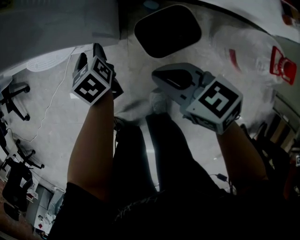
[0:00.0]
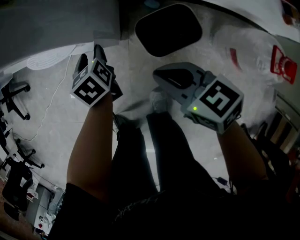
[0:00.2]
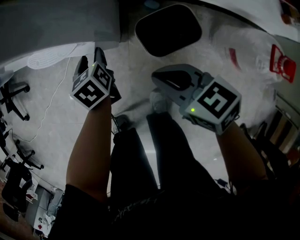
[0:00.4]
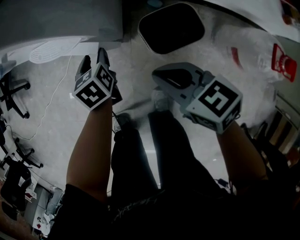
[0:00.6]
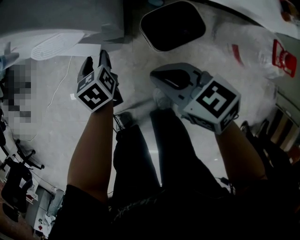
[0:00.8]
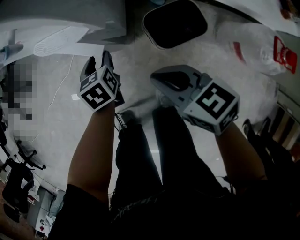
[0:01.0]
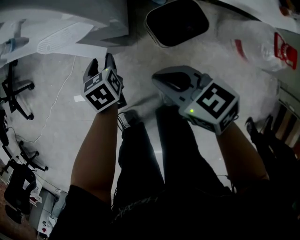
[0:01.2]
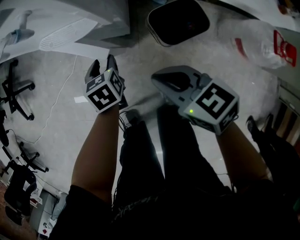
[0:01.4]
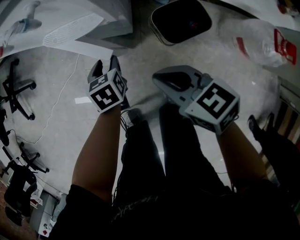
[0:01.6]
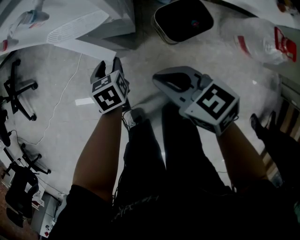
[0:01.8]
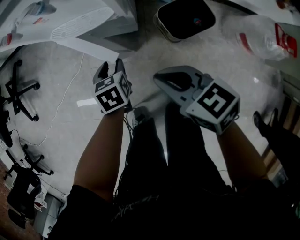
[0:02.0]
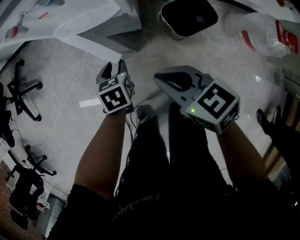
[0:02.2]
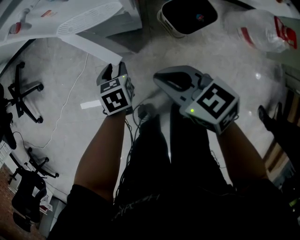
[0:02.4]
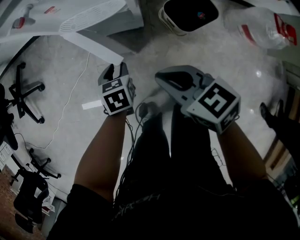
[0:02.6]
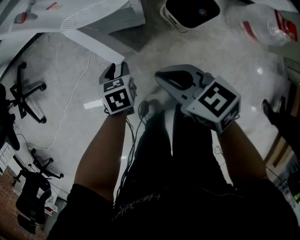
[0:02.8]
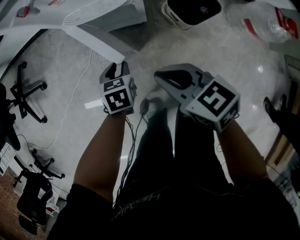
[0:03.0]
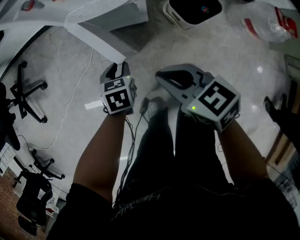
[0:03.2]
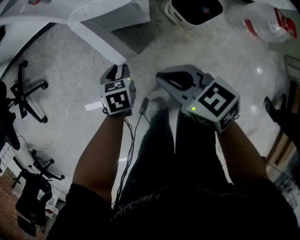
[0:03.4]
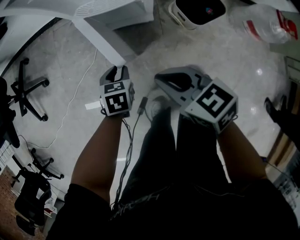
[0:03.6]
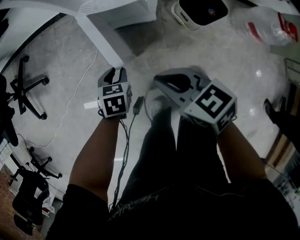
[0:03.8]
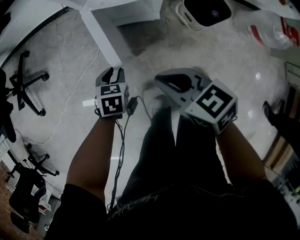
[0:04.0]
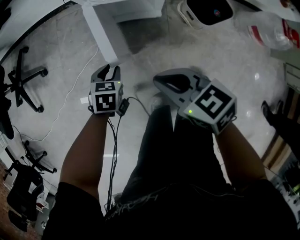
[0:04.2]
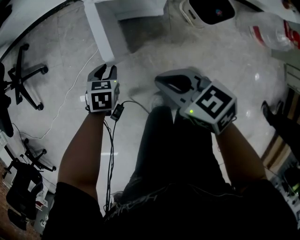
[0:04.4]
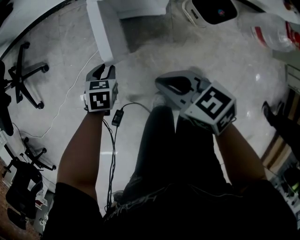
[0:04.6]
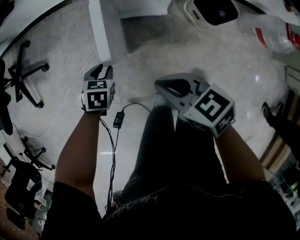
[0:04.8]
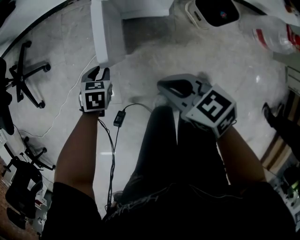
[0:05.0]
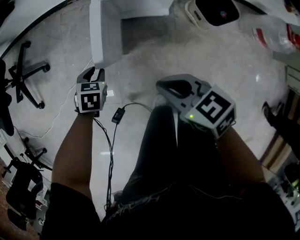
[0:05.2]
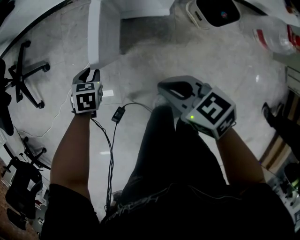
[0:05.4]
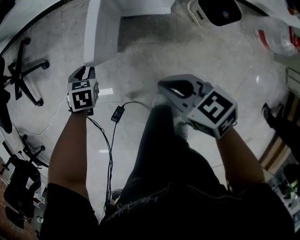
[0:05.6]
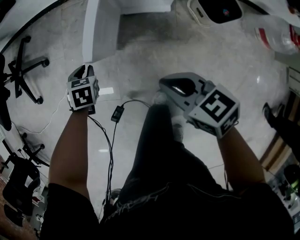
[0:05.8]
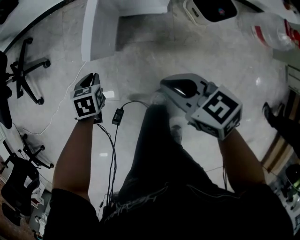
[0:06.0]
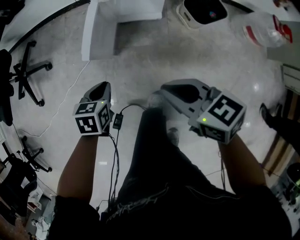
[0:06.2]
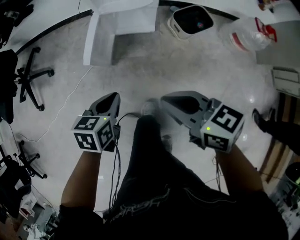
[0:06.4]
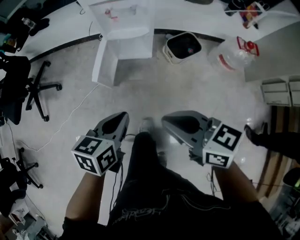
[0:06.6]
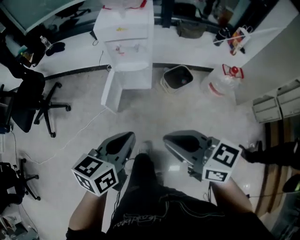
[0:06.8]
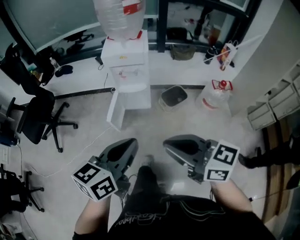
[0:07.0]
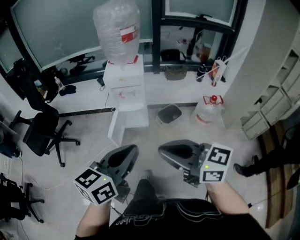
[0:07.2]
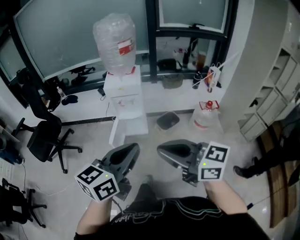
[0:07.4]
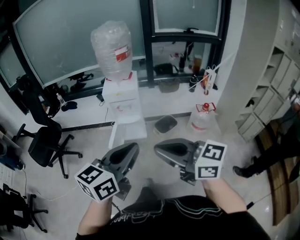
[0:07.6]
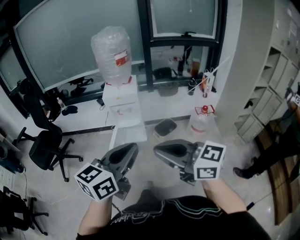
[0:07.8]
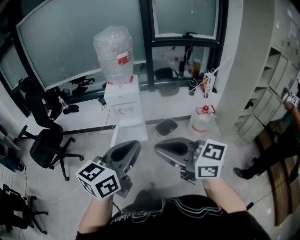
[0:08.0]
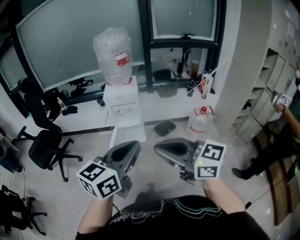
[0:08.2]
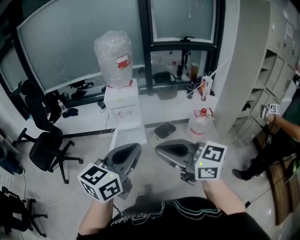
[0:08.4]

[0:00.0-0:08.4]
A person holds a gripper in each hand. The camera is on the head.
0:00.0 to 0:01.4: Both grippers move to the left, about 10 cm.
0:01.4 to 0:02.8: The two grippers go about 10 cm to the left.
0:02.8 to 0:04.2: Both grippers travel together to the left, roughly 10 cm.
0:04.2 to 0:05.6: The left gripper goes about 15 cm to the left and forward.
0:05.6 to 0:07.0: The two grippers go about 60 cm upward. The right gripper rotates approximately 30 degrees. Meanwhile the left gripper tilts its fingers approximately 50 degrees upward.
0:07.0 to 0:08.4: The grippers both shift upward and backward by about 20 cm. The left gripper swivels some 20 degrees.

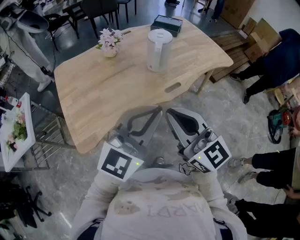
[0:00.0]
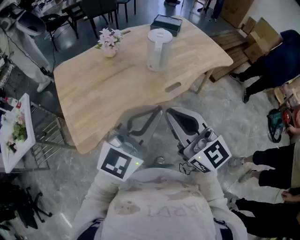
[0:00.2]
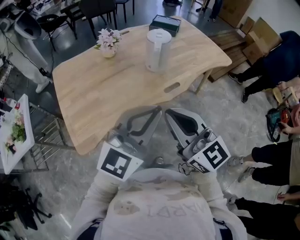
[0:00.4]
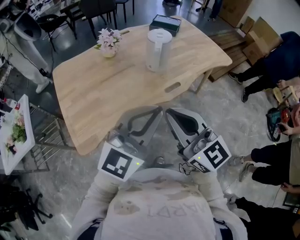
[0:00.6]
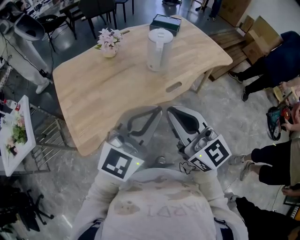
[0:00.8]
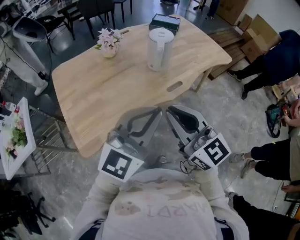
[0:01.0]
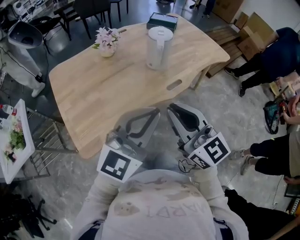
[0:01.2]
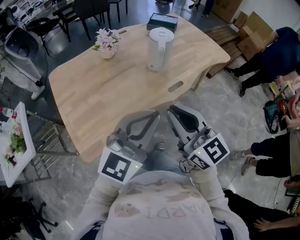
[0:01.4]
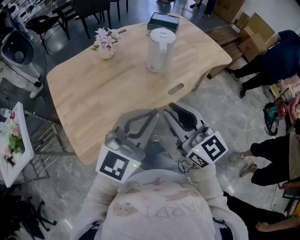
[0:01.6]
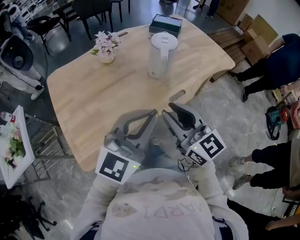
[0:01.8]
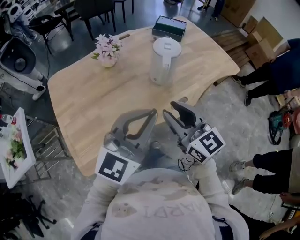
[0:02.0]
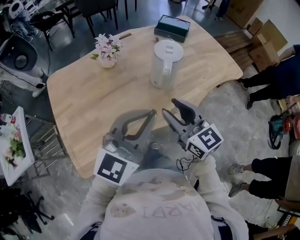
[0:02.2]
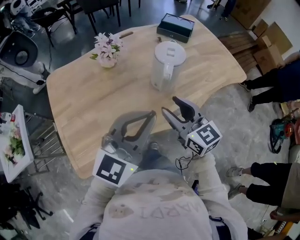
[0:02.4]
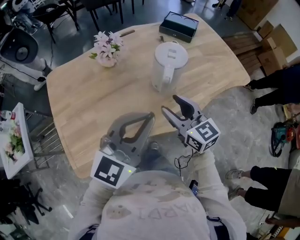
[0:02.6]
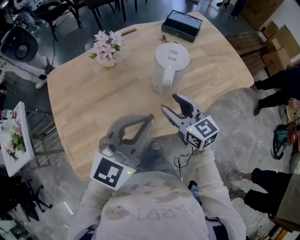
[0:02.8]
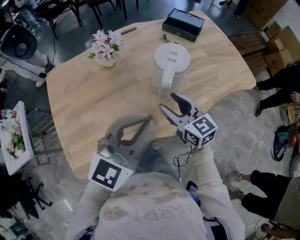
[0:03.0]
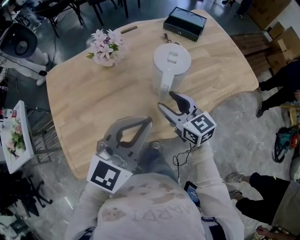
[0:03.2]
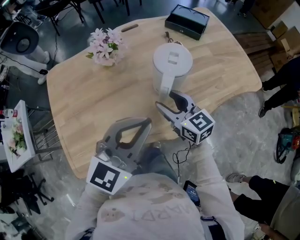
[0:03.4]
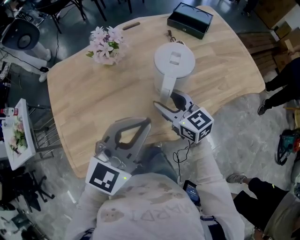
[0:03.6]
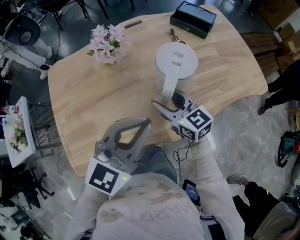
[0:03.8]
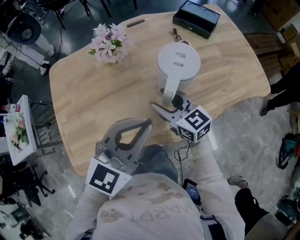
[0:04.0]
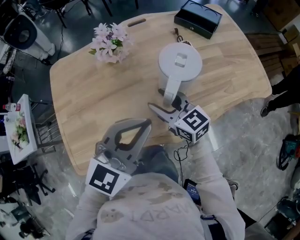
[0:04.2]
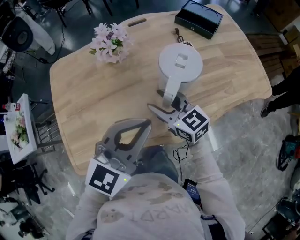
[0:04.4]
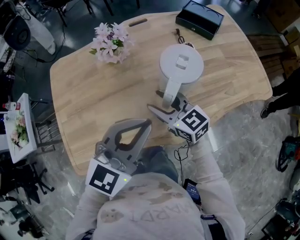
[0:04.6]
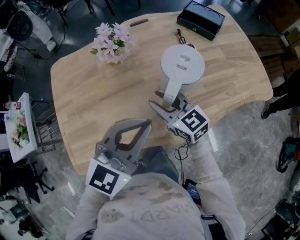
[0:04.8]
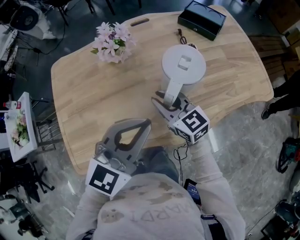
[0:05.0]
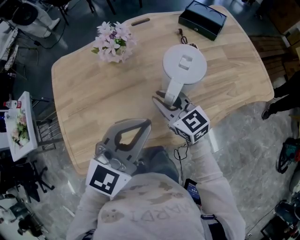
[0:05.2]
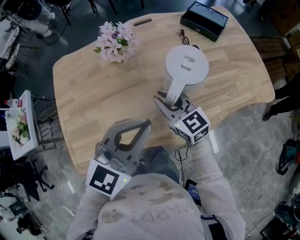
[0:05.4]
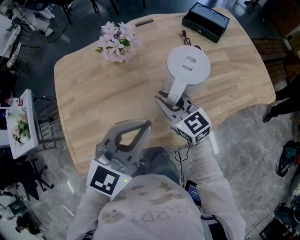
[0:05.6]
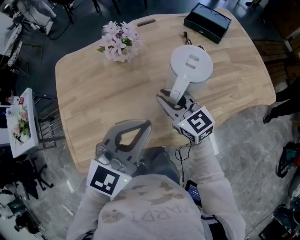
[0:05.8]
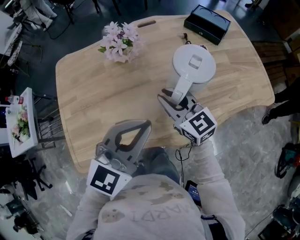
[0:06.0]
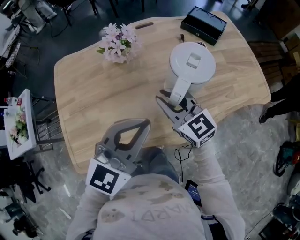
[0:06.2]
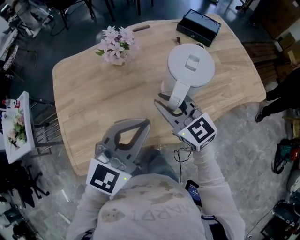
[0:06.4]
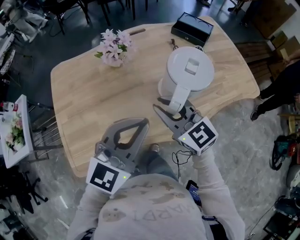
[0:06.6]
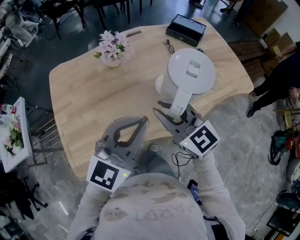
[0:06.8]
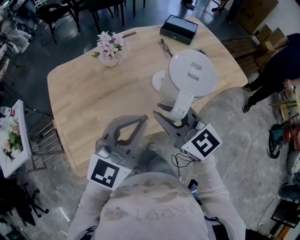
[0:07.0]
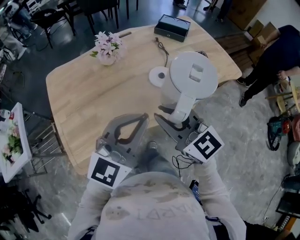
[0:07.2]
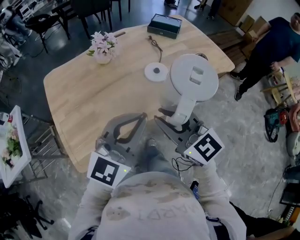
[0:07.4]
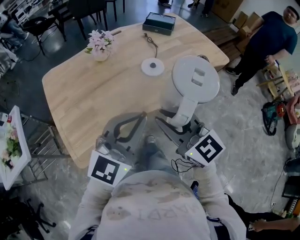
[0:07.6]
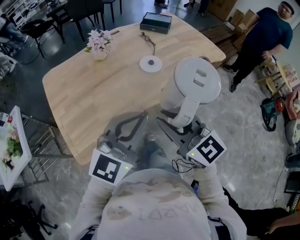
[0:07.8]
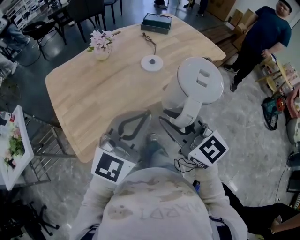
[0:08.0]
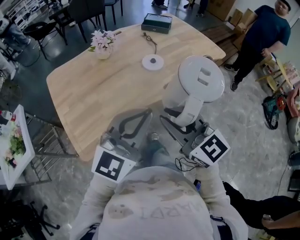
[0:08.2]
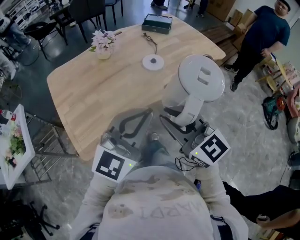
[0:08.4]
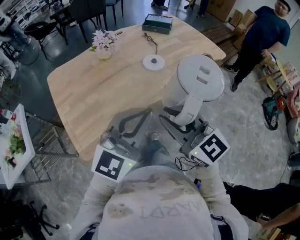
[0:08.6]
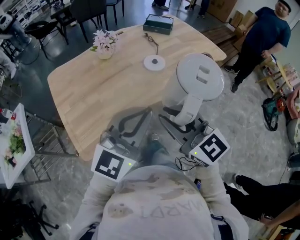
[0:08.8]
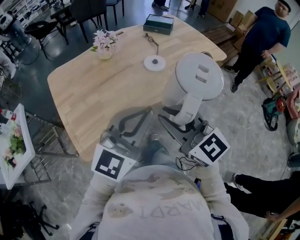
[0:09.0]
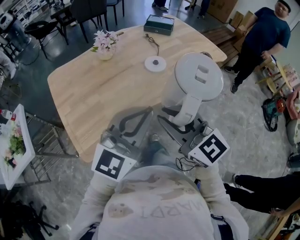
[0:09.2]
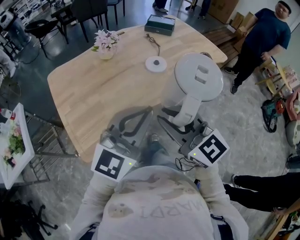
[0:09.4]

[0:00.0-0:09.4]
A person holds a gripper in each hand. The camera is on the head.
0:00.0 to 0:01.6: The right gripper travels forward by about 5 cm. The left gripper heads to the left, covering approximately 5 cm.
0:01.6 to 0:03.2: The right gripper heads forward and downward, covering some 35 cm, rotates some 20 degrees, and opens. The left gripper heads forward, covering approximately 20 cm.
0:03.2 to 0:04.8: The right gripper moves to the left, about 5 cm. Meanwhile the left gripper ends up about 5 cm from where it was.
0:04.8 to 0:06.2: The right gripper goes roughly 5 cm upward.
0:06.2 to 0:07.8: The two grippers go about 30 cm backward. The left gripper rotates some 20 degrees.
0:07.8 to 0:09.4: The grippers make only small movements.

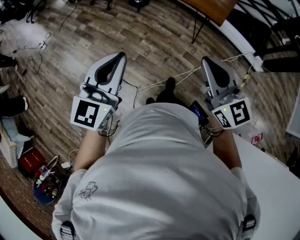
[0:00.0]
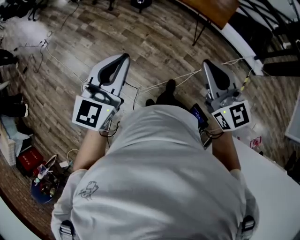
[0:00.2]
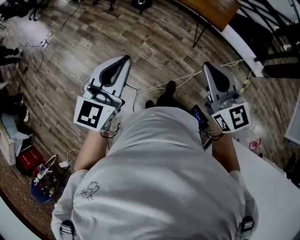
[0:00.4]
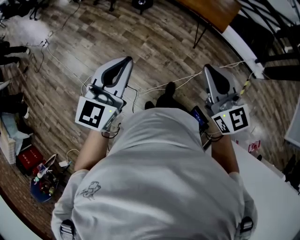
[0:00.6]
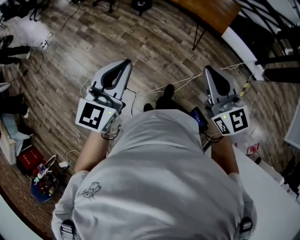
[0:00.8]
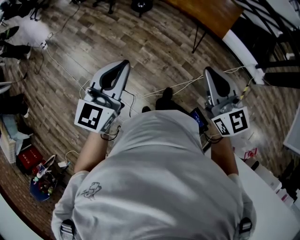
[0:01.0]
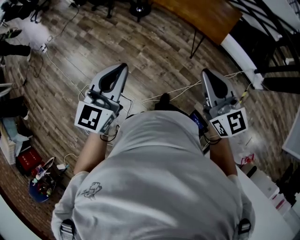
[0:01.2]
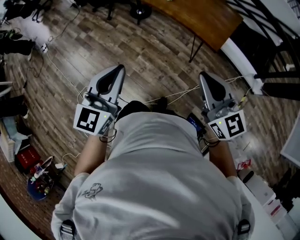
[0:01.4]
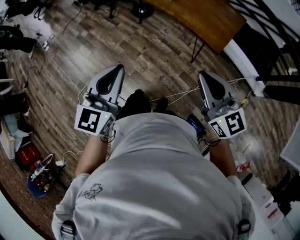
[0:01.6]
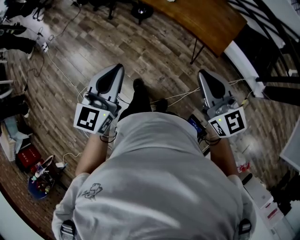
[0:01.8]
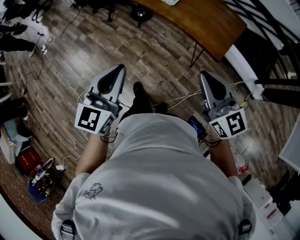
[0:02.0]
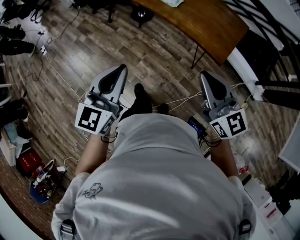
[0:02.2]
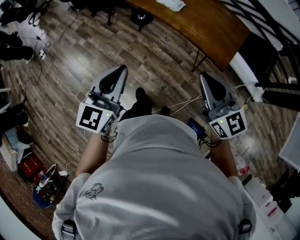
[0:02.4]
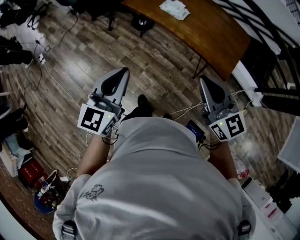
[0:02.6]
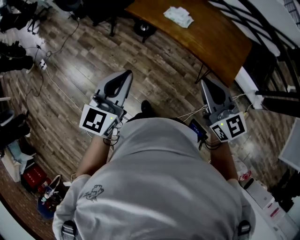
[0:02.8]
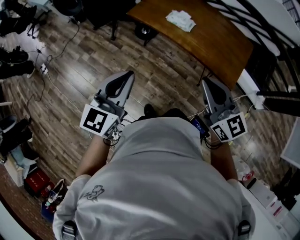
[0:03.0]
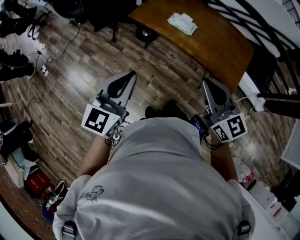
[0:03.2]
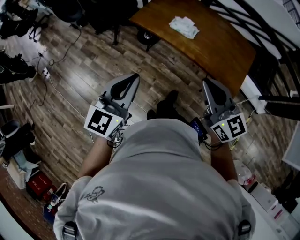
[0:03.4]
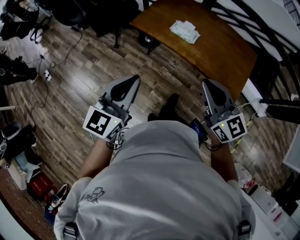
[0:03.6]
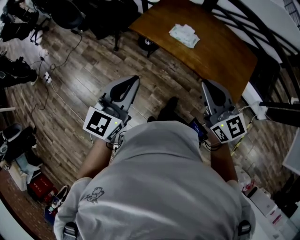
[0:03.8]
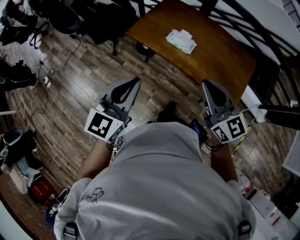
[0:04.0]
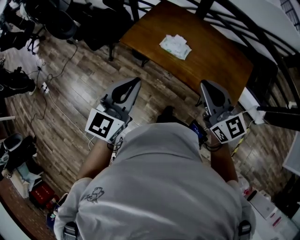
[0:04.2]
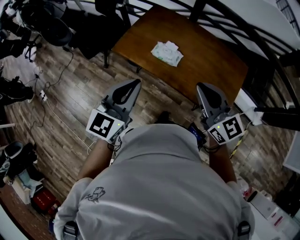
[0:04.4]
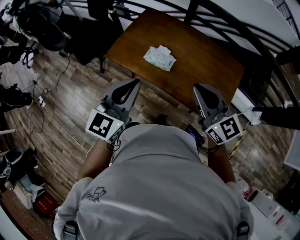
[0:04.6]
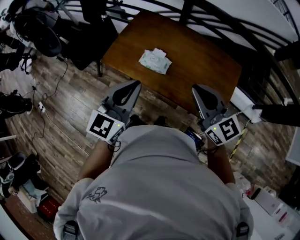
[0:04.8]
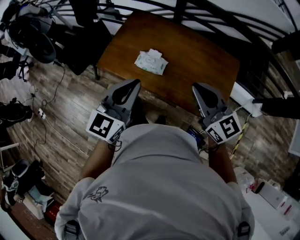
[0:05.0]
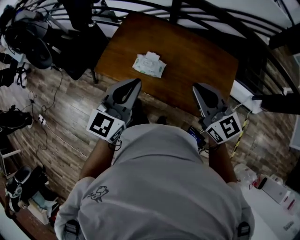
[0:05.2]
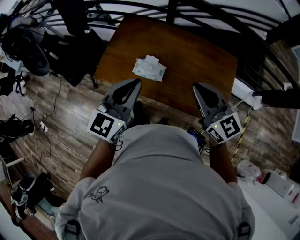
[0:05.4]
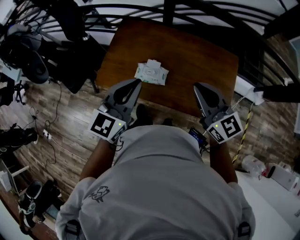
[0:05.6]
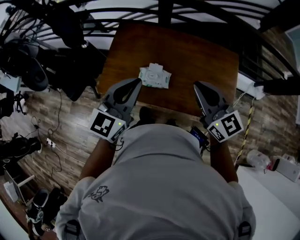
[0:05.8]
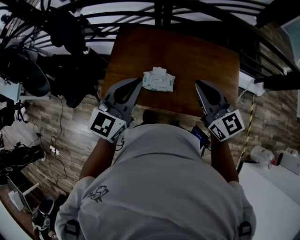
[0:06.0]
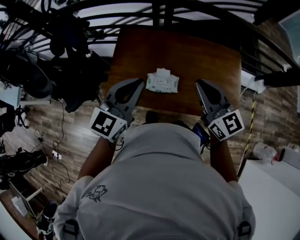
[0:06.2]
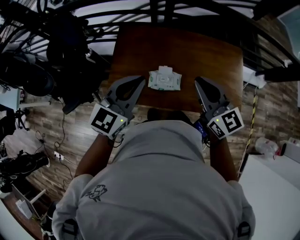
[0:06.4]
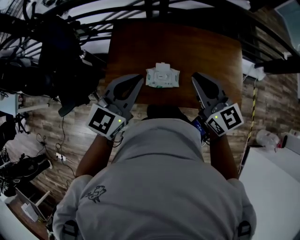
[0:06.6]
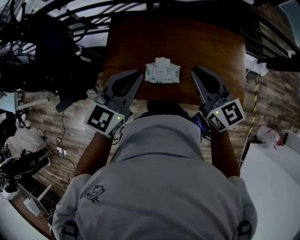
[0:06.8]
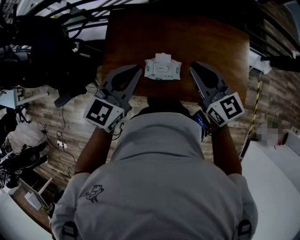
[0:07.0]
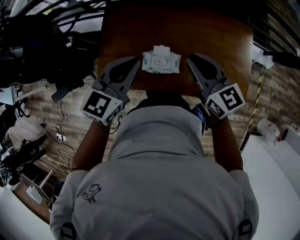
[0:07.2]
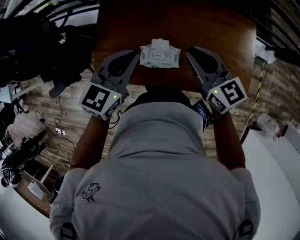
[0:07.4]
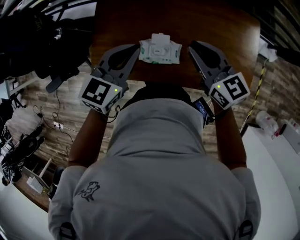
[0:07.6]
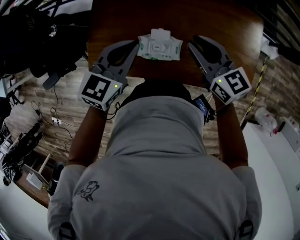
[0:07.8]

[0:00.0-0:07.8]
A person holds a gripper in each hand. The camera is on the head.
0:00.0 to 0:01.6: The two grippers go approximately 25 cm forward and to the right.
0:01.6 to 0:03.2: Both grippers travel together forward and to the left, roughly 30 cm.
0:03.2 to 0:04.6: Both grippers move forward and to the right, some 25 cm.
0:04.6 to 0:06.2: Both grippers travel together forward, roughly 20 cm. The right gripper swivels approximately 30 degrees. The left gripper swivels roughly 20 degrees.
0:06.2 to 0:07.8: The two grippers go some 20 cm downward and forward. The right gripper changes its angle by about 20 degrees.
